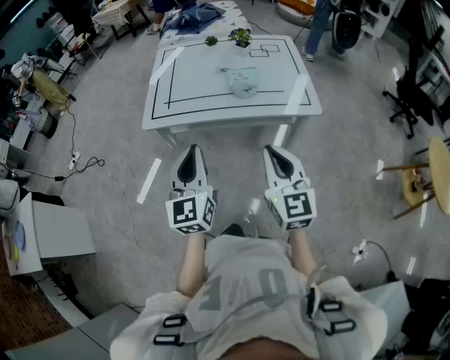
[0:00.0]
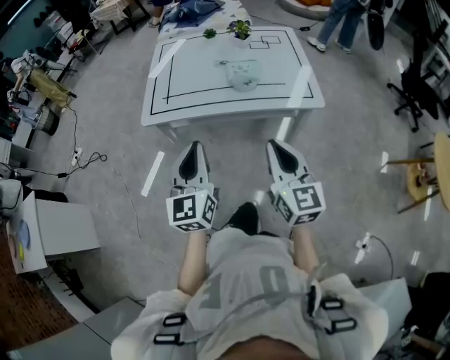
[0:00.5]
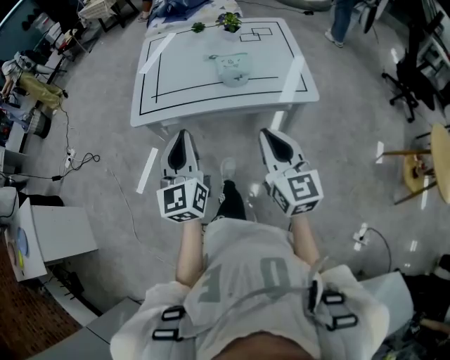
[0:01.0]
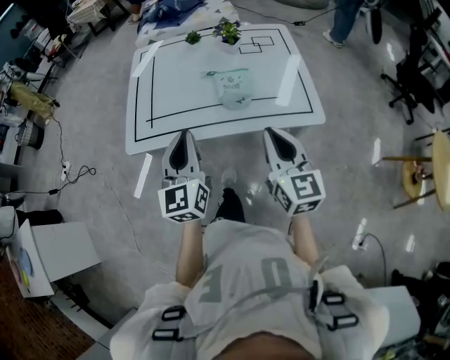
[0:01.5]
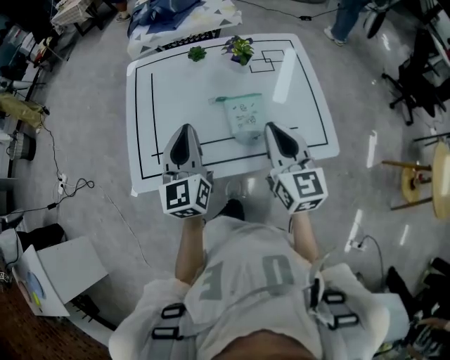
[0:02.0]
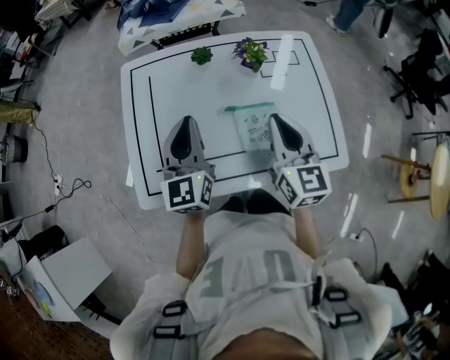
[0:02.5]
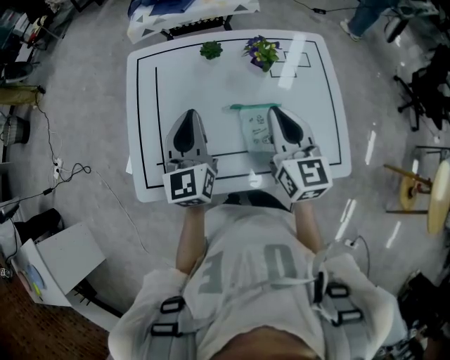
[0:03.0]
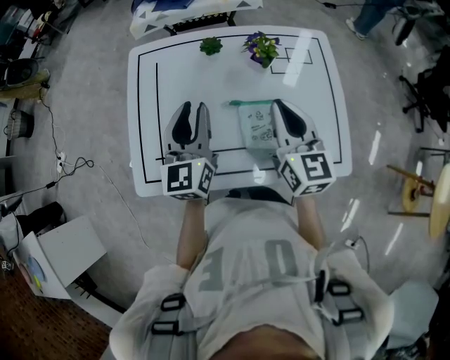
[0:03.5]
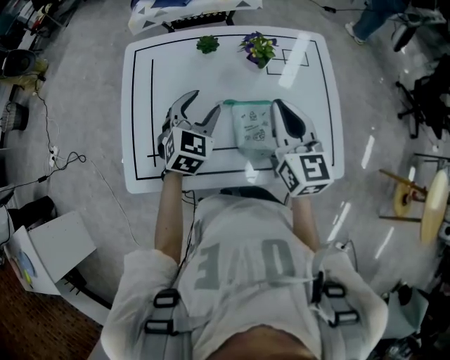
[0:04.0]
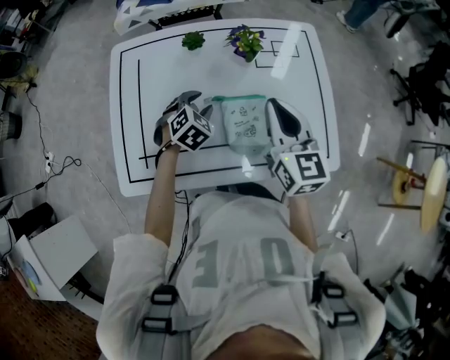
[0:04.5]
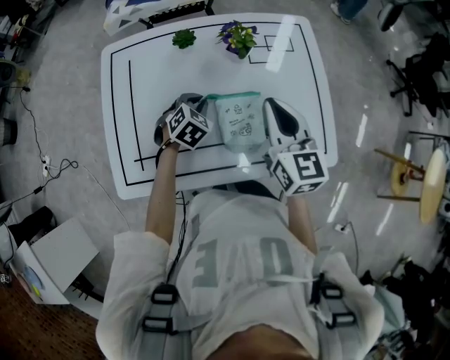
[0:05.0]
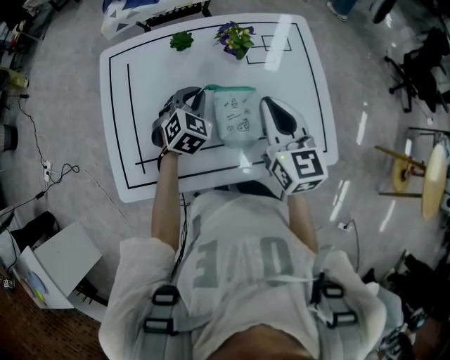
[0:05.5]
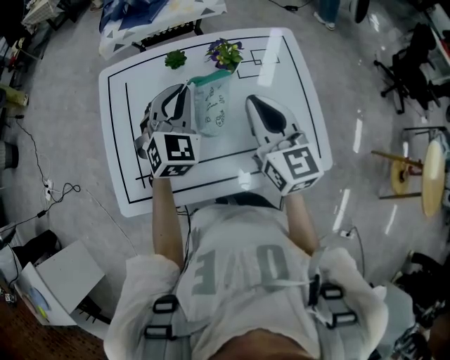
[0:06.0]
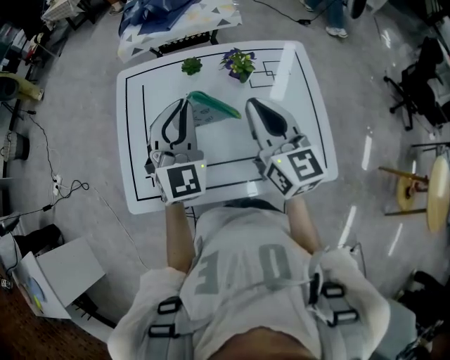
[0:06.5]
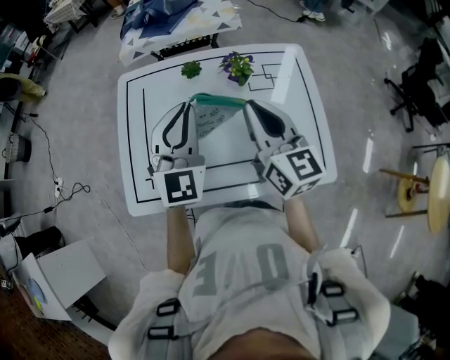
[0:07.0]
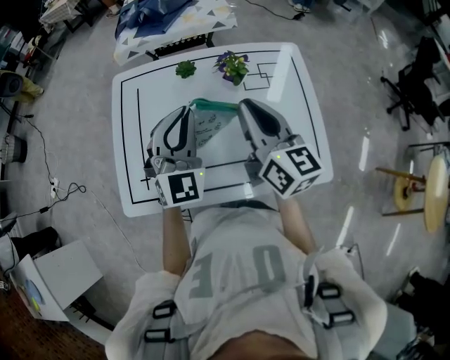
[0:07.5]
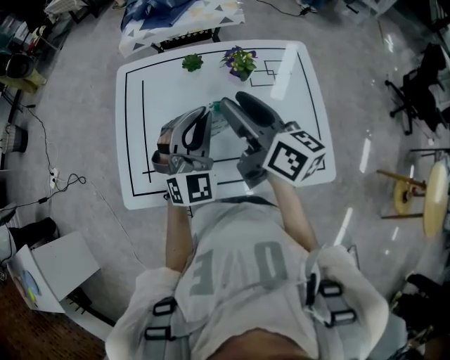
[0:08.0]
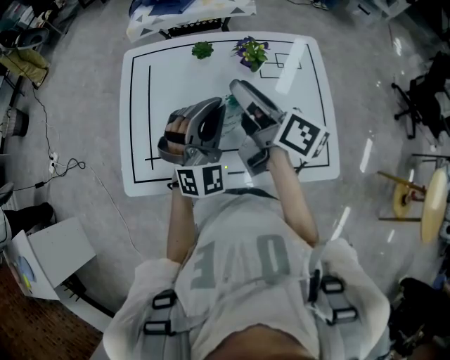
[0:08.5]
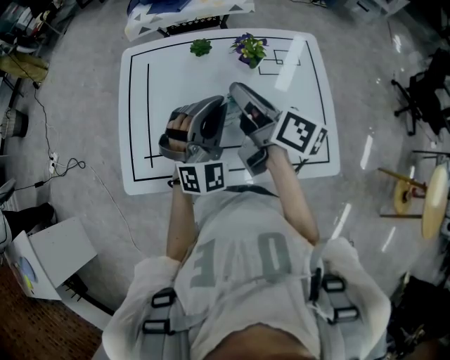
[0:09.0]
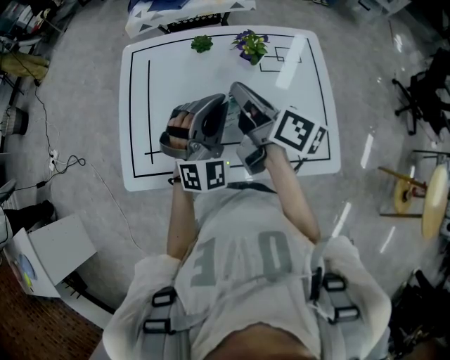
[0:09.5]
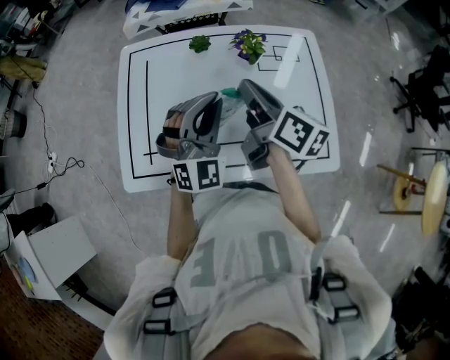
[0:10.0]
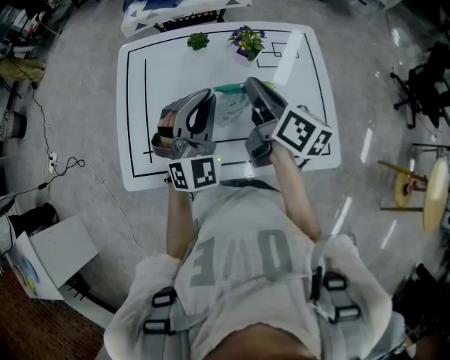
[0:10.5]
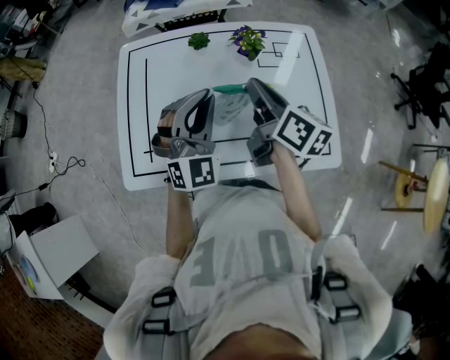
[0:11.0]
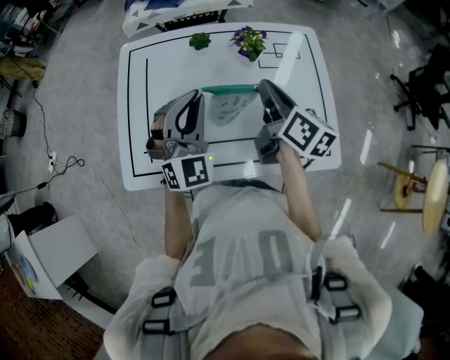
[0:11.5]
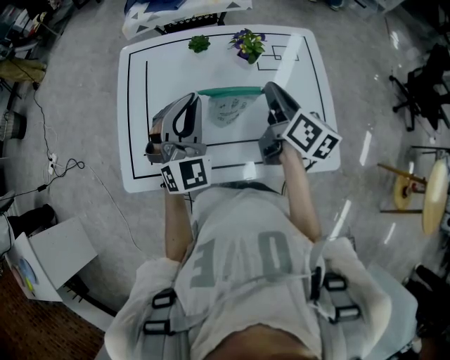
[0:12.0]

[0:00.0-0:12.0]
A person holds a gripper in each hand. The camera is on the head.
0:00.0 to 0:02.0: The two grippers go about 35 cm forward.
0:02.0 to 0:04.0: The left gripper travels forward and downward by approximately 20 cm, swivels approximately 40 degrees, and opens. Meanwhile the right gripper travels forward by approximately 15 cm.
0:04.0 to 0:06.0: The left gripper moves upward, about 10 cm, and closes.
0:06.0 to 0:08.0: The right gripper is displaced to the left by about 5 cm, changes its angle by some 40 degrees, and opens. Meanwhile the left gripper heads backward, covering about 10 cm.
0:08.0 to 0:10.0: The right gripper ends up roughly 5 cm from where it was, and closes its fingers.
0:10.0 to 0:12.0: The right gripper heads to the right, covering roughly 5 cm.

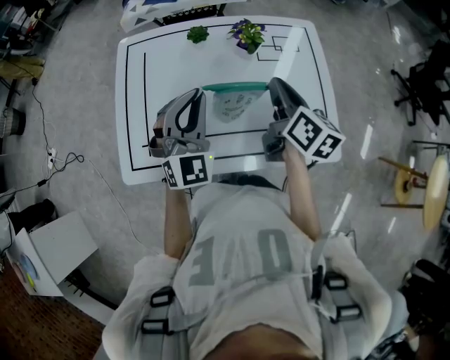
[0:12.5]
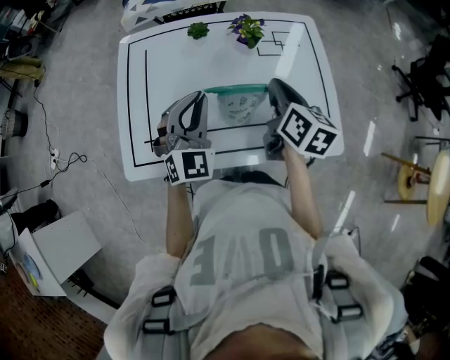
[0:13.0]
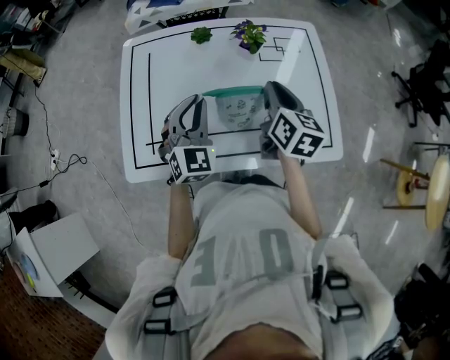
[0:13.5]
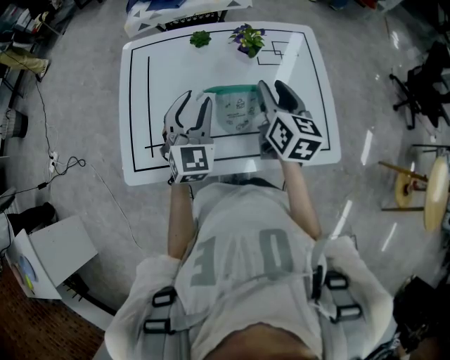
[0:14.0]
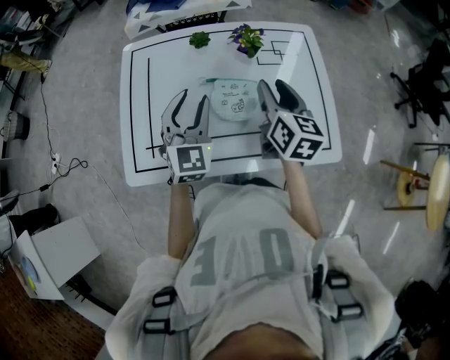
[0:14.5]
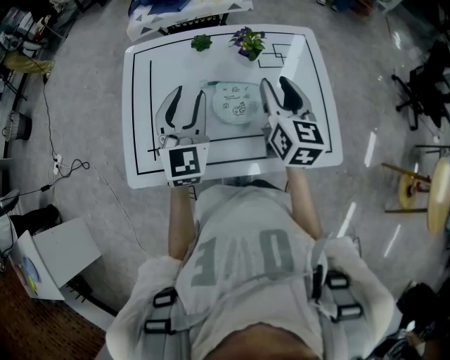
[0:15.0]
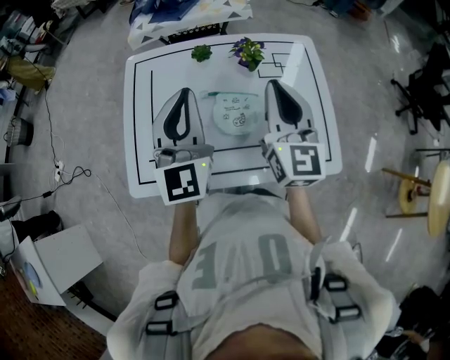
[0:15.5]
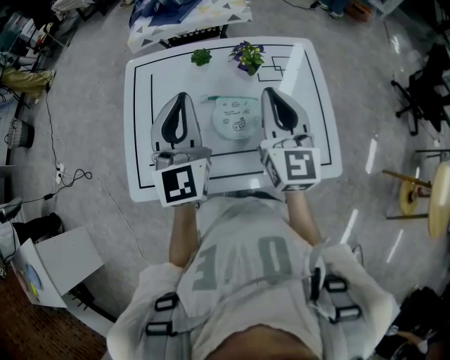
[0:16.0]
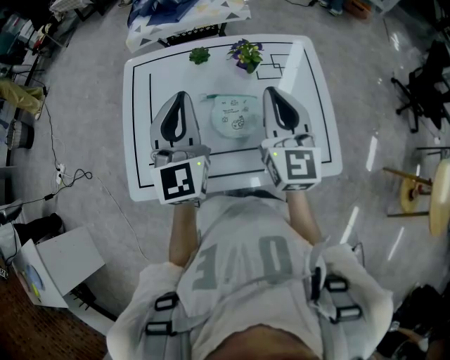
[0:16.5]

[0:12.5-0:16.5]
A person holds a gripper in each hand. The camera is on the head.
0:12.5 to 0:14.5: The right gripper opens its fingers; the left gripper opens its fingers.
0:14.5 to 0:16.5: The two grippers go approximately 10 cm upward. The left gripper turns by about 20 degrees, and closes. Meanwhile the right gripper swivels about 30 degrees, and closes its fingers.

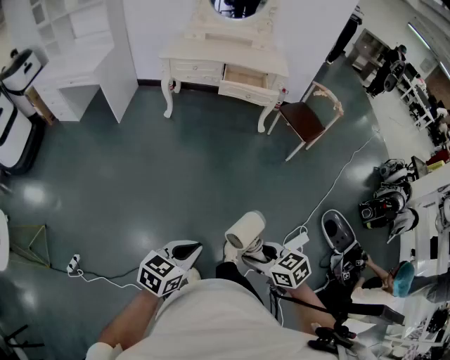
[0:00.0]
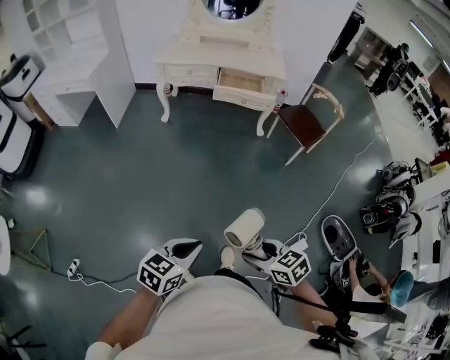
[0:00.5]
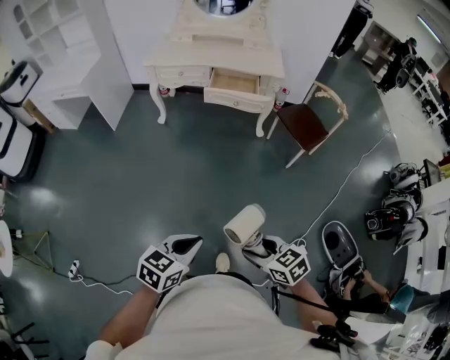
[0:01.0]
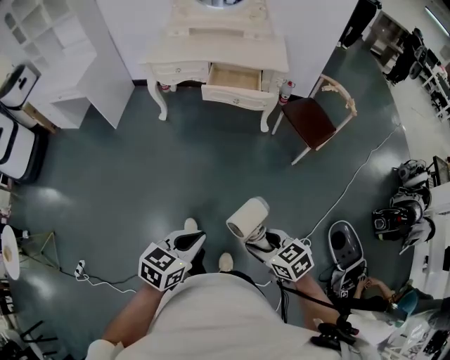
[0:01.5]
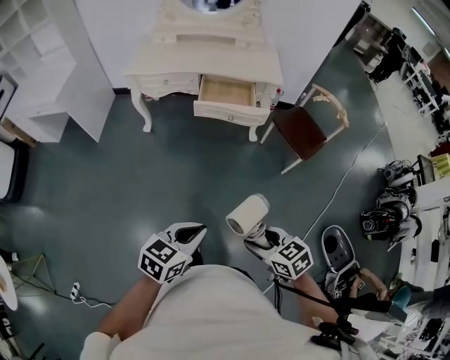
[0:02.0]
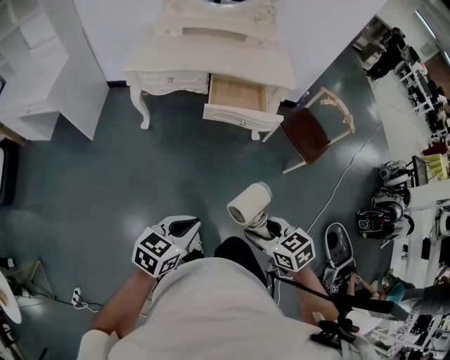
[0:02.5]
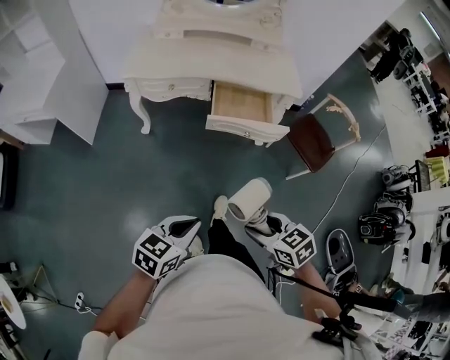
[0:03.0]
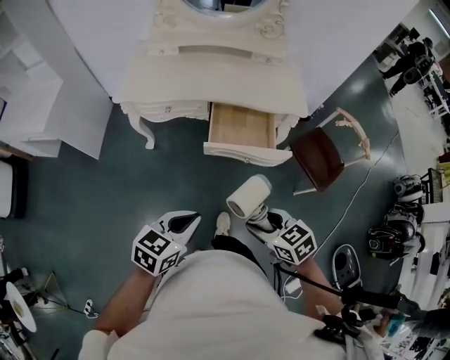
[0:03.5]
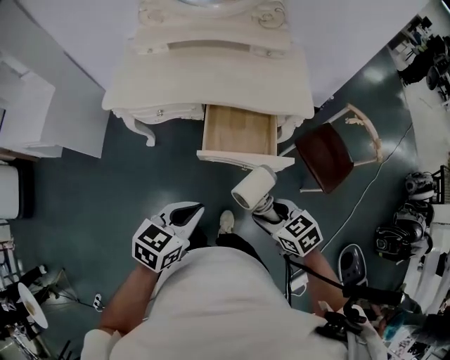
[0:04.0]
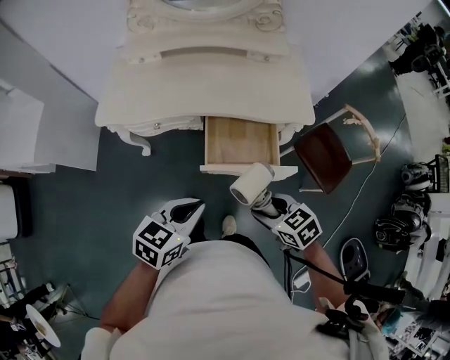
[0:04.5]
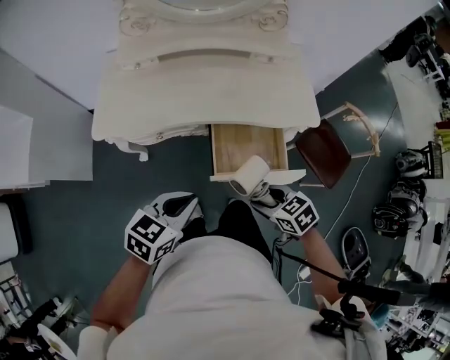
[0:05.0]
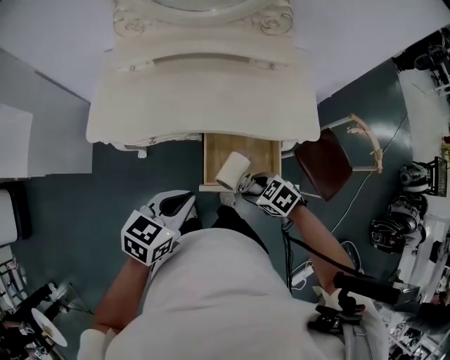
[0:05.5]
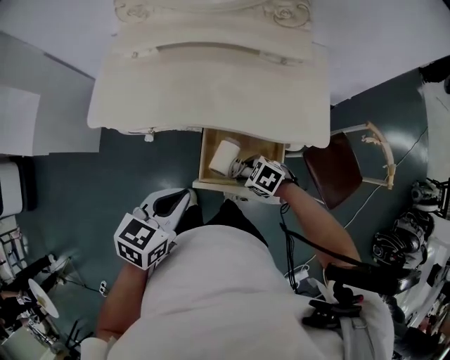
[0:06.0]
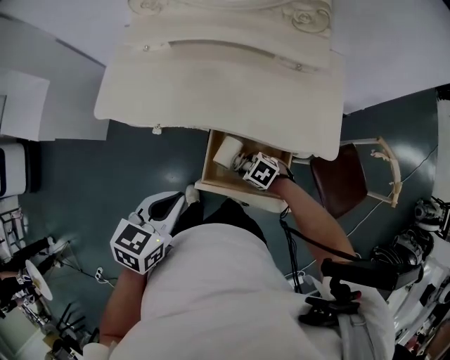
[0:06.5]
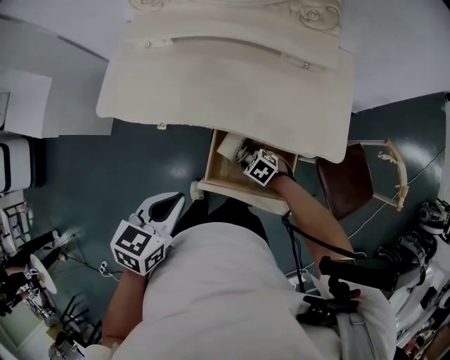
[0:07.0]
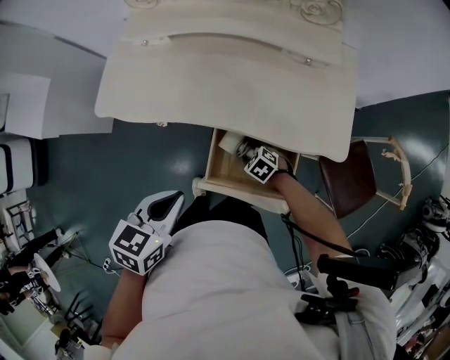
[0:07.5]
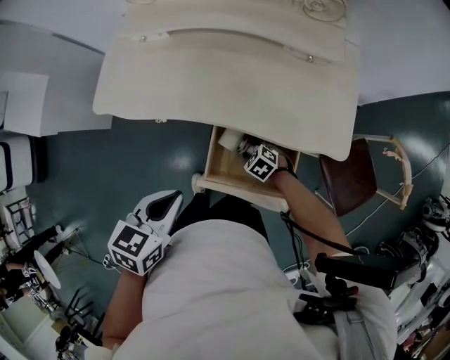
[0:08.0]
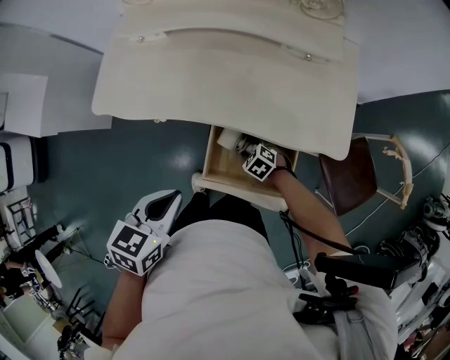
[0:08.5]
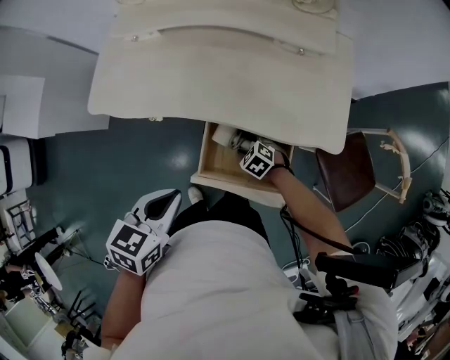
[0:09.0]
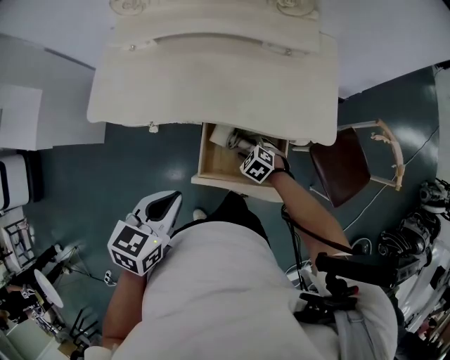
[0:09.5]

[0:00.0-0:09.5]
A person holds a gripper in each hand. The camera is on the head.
0:00.0 to 0:02.0: The grippers both shift forward by about 35 cm.
0:02.0 to 0:04.0: The two grippers travel together, forward, roughly 40 cm.
0:04.0 to 0:05.5: The right gripper changes place by roughly 25 cm, while the left gripper moves approximately 20 cm.
0:05.5 to 0:07.5: The left gripper rotates roughly 20 degrees. The right gripper moves downward, roughly 20 cm.
0:07.5 to 0:09.5: The grippers make only small movements.

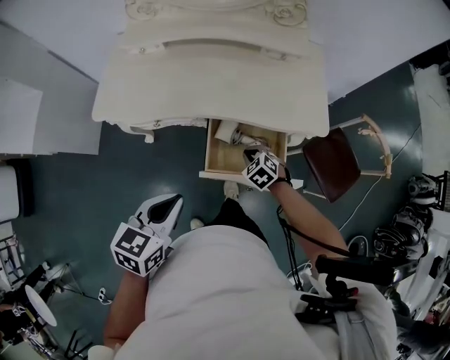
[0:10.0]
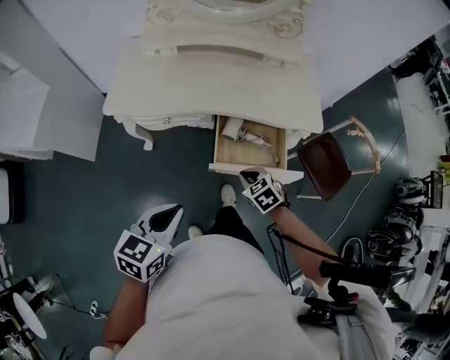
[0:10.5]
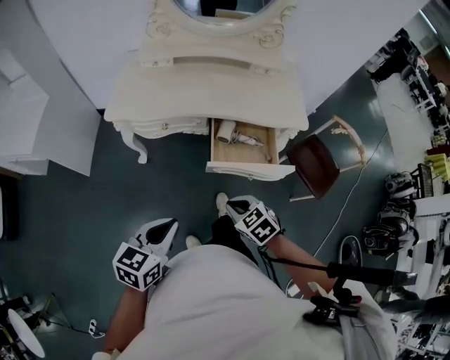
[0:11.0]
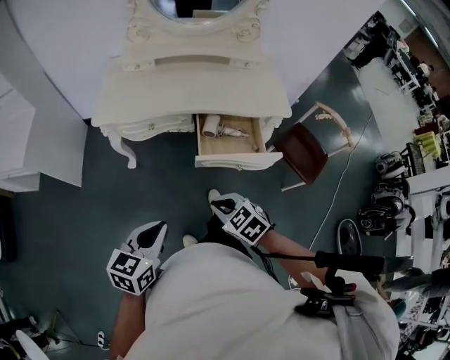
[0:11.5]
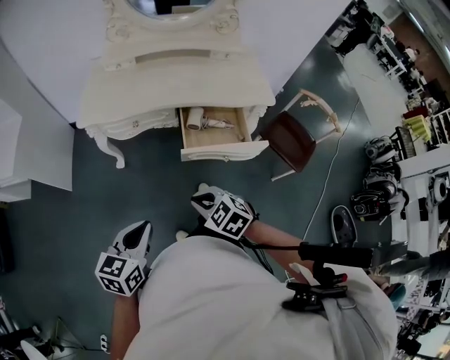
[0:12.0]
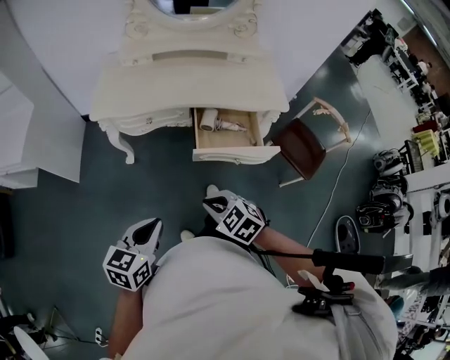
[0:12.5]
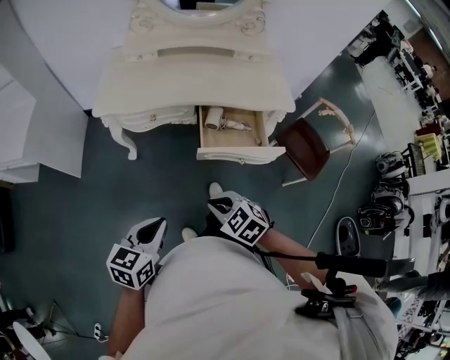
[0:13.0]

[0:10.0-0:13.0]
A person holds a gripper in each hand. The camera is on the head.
0:10.0 to 0:11.5: The left gripper is displaced backward and to the left by approximately 25 cm; the right gripper shifts some 35 cm backward, to the left and upward.
0:11.5 to 0:13.0: There are only small adjustments of the grippers.
